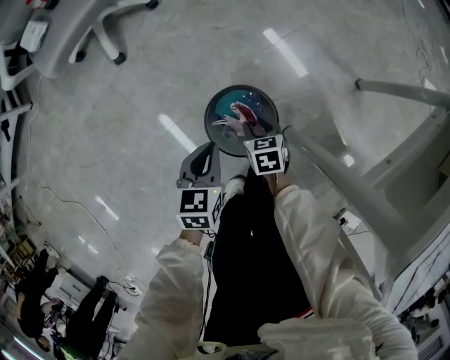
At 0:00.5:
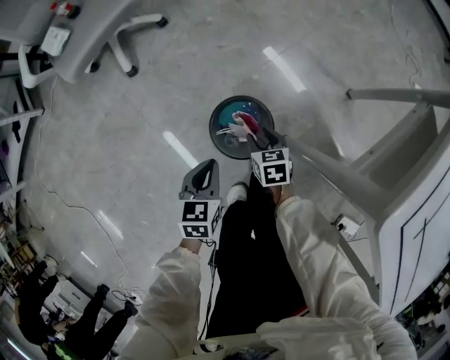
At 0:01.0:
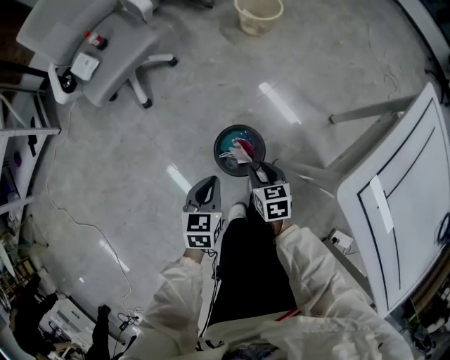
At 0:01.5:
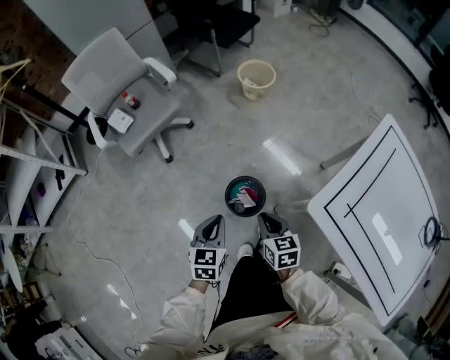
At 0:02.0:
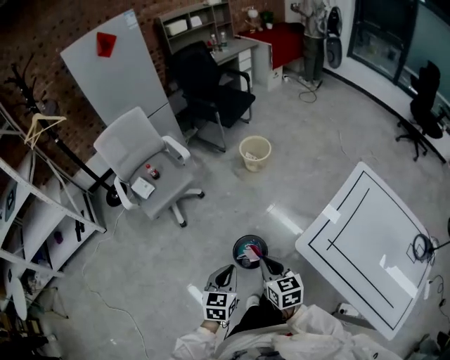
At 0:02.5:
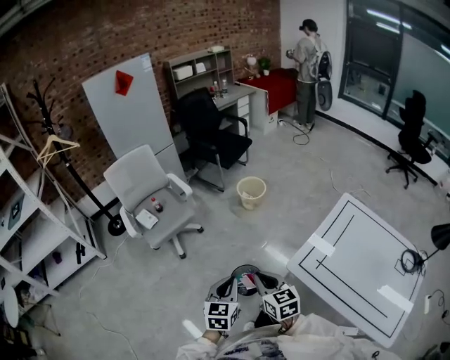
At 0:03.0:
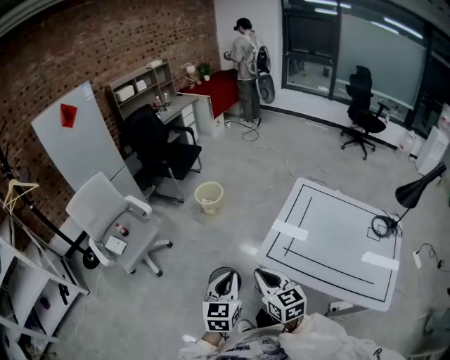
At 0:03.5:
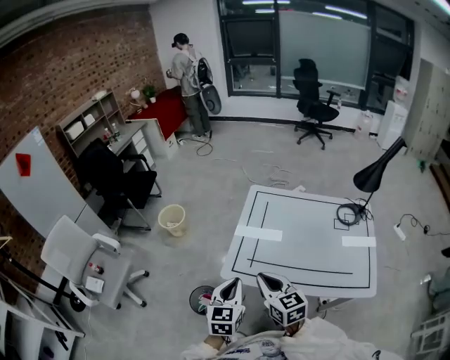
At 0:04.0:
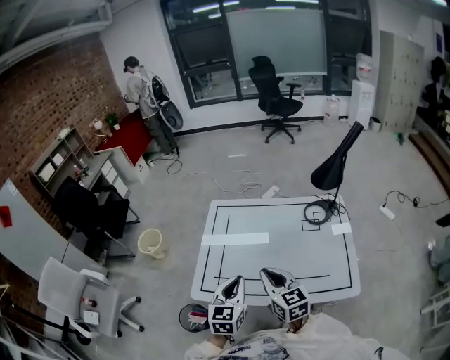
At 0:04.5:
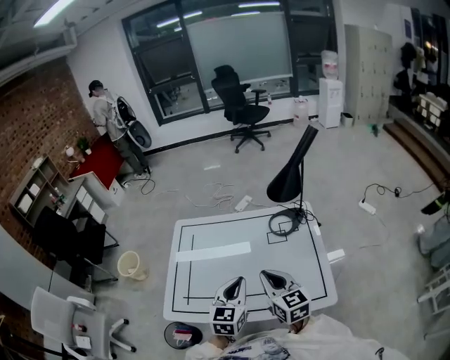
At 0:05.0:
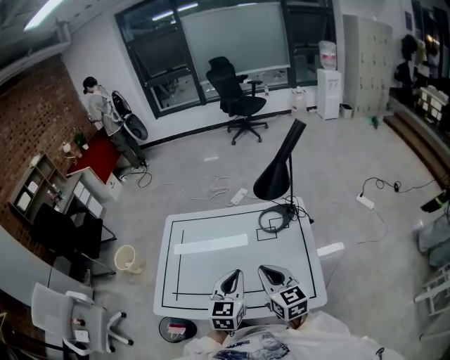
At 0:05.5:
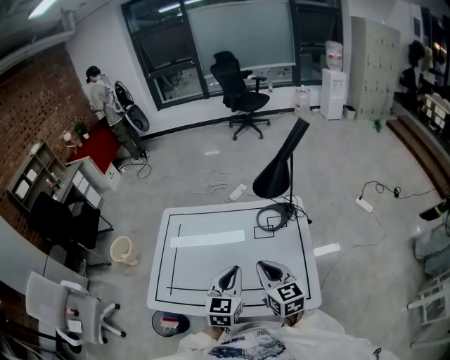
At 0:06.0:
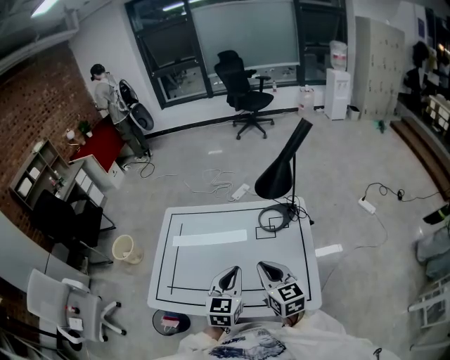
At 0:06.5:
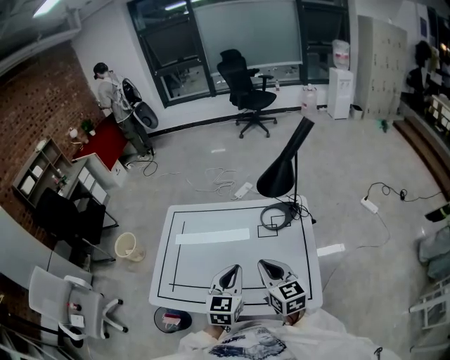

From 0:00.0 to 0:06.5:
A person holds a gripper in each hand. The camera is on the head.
From 0:00.0 to 0:02.0: The two grippers go about 50 cm upward. The right gripper tips its fingers upward by about 30 degrees, and closes its fingers.
From 0:02.0 to 0:04.5: Both grippers are carried roughly 60 cm. The left gripper rotates approximately 50 degrees, while the right gripper swivels about 50 degrees.
From 0:04.5 to 0:06.5: The two grippers go some 5 cm to the right.

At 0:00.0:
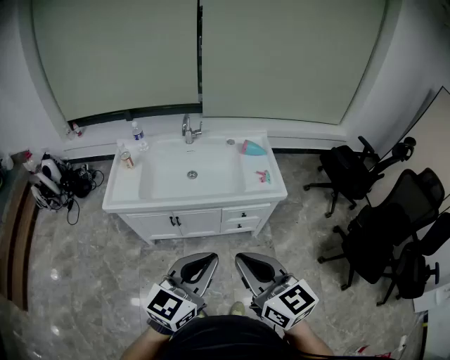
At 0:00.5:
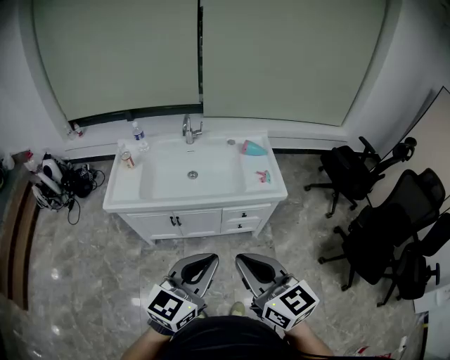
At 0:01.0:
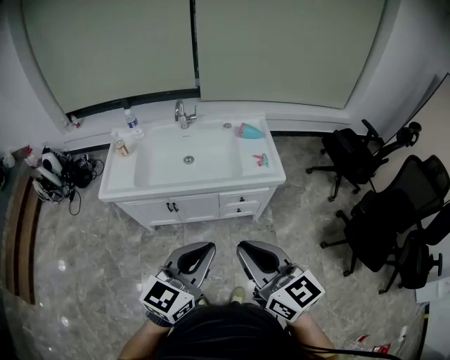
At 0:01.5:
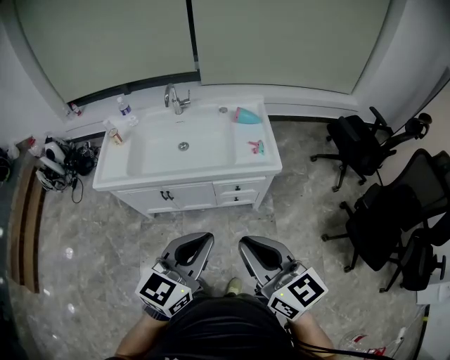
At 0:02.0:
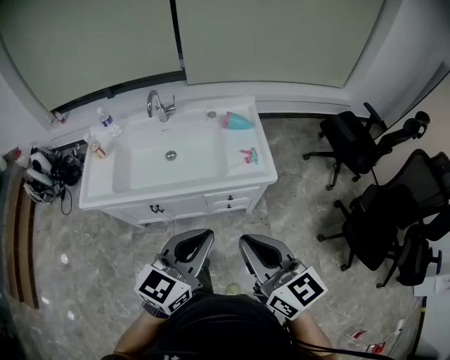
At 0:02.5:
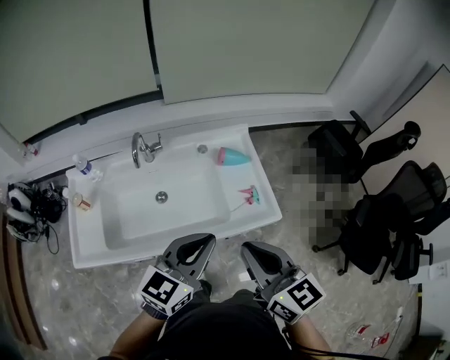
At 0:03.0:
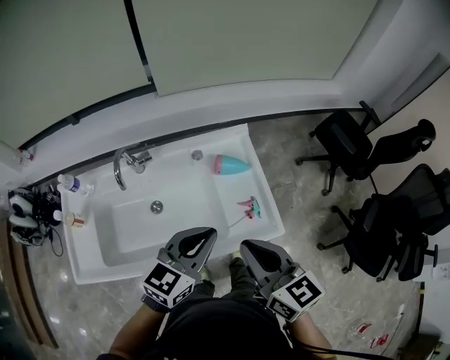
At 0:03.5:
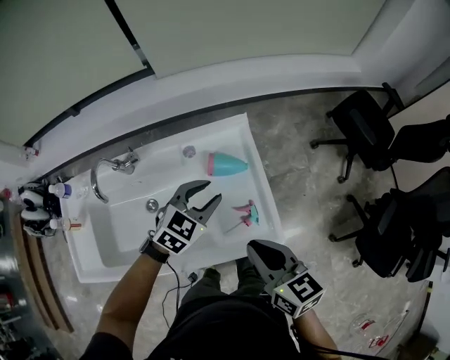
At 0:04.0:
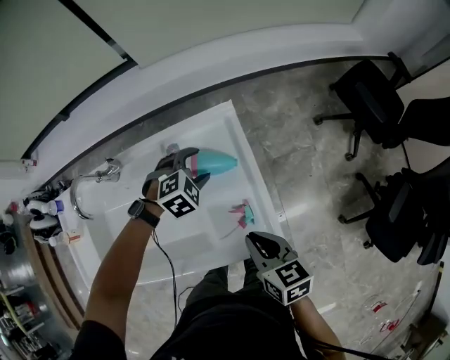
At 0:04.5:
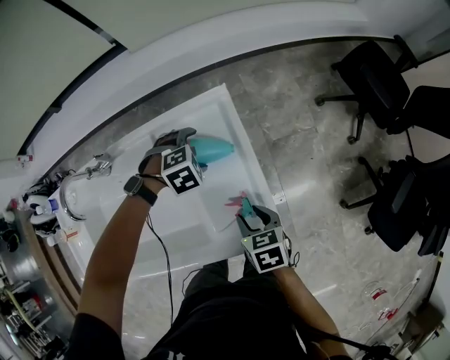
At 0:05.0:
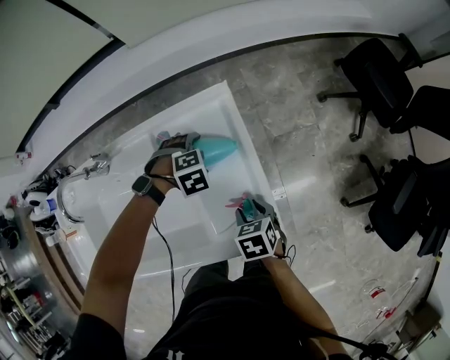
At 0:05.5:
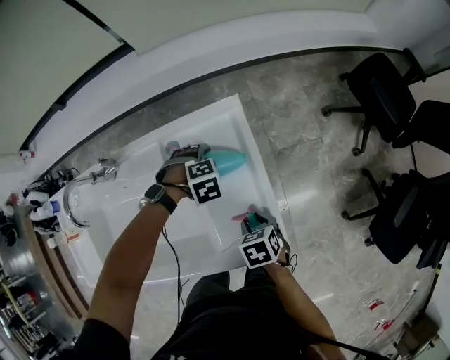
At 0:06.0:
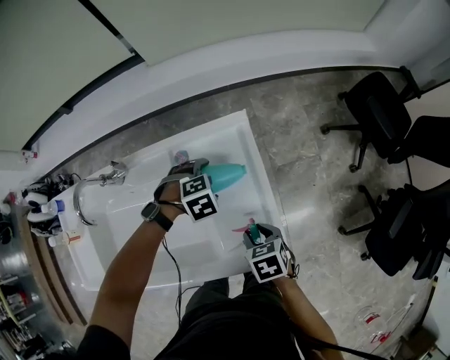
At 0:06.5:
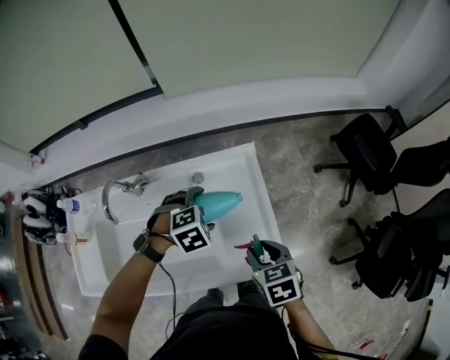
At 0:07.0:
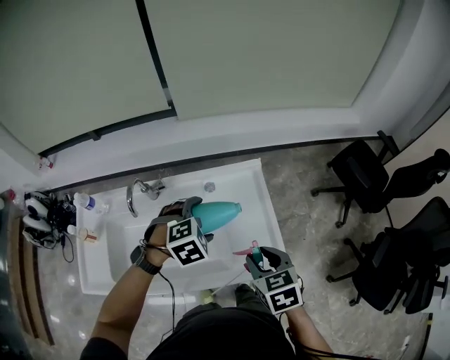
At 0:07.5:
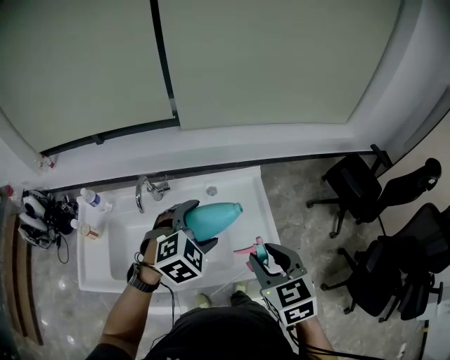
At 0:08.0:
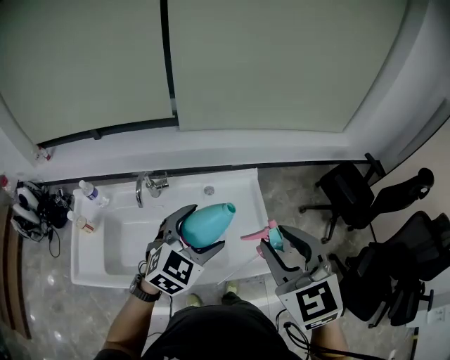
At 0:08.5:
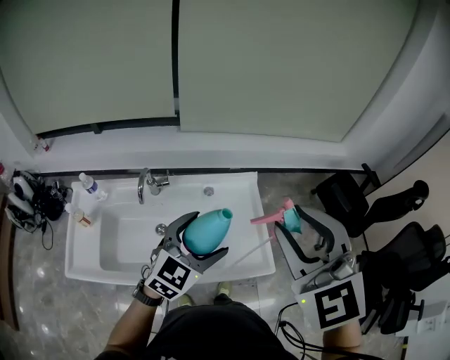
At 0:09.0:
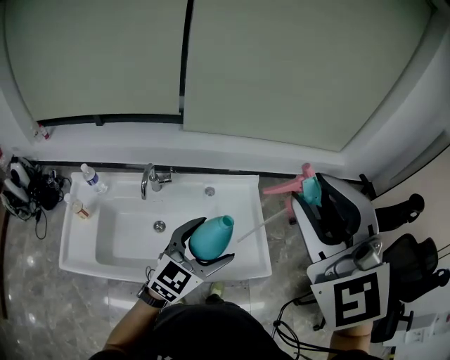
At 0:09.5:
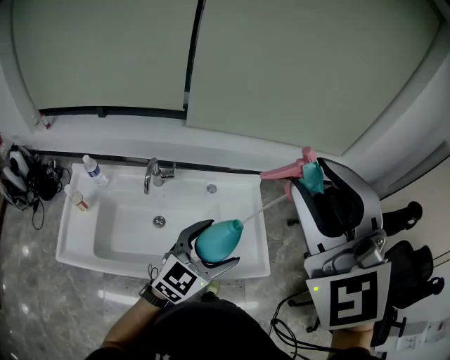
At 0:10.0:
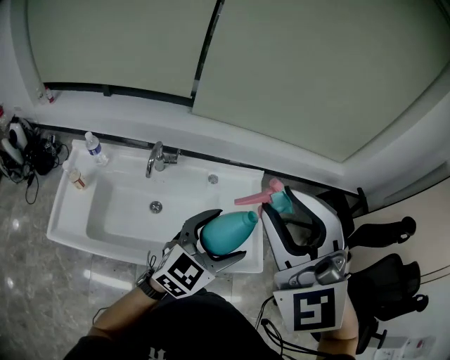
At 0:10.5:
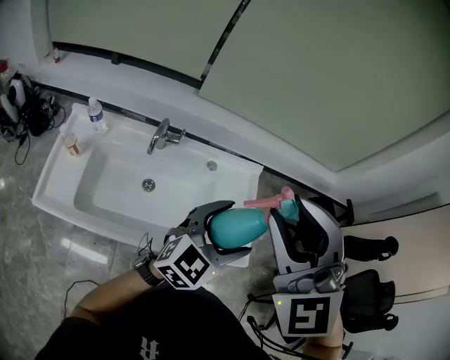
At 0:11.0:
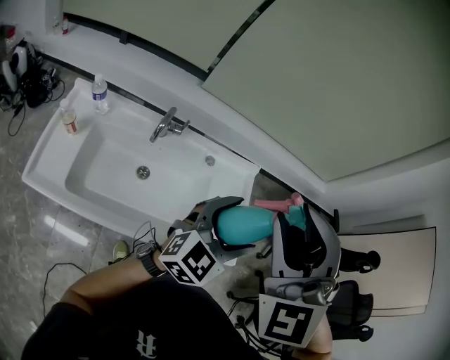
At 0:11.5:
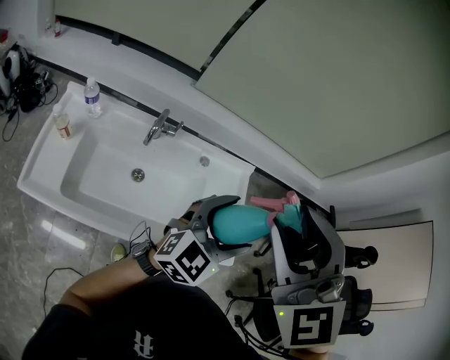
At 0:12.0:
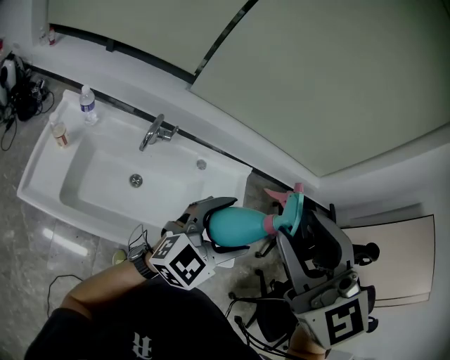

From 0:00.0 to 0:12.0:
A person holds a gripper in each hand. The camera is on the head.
From 0:00.0 to 0:02.0: Both grippers move forward and to the right, about 20 cm.
From 0:02.0 to 0:04.0: The pair of grippers is taken forward, approximately 50 cm. The two grippers go about 30 cm downward. The left gripper angles its fingers downward, by some 50 degrees, and opens; the right gripper rotates about 30 degrees.
From 0:04.0 to 0:06.0: The right gripper travels downward by approximately 10 cm, turns by roughly 30 degrees, and opens. Meanwhile the left gripper shifts roughly 5 cm downward, and opens up.
From 0:06.0 to 0:08.0: Both grippers travel together upward, some 40 cm. The right gripper tips its fingers upward by approximately 40 degrees, while the left gripper points its fingers some 50 degrees further upward.
From 0:08.0 to 0:10.0: The left gripper rotates some 20 degrees, while the right gripper shifts about 15 cm to the left and upward, and rotates roughly 30 degrees.
From 0:10.0 to 0:12.0: The grippers move only a little.

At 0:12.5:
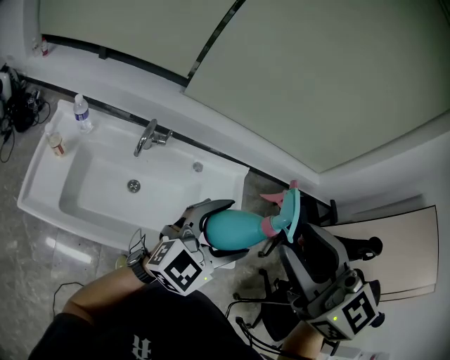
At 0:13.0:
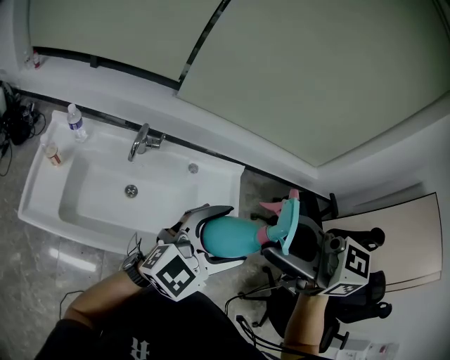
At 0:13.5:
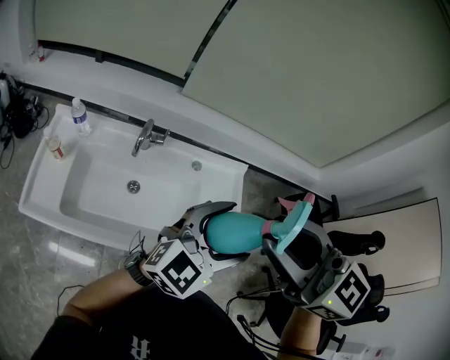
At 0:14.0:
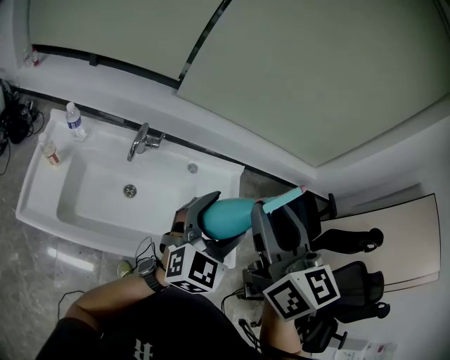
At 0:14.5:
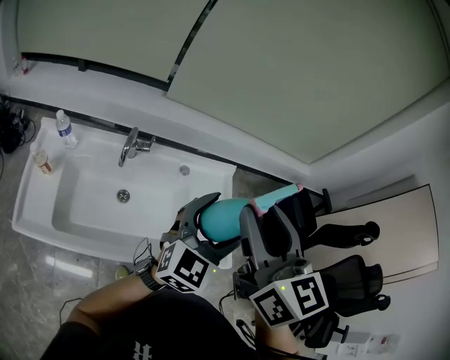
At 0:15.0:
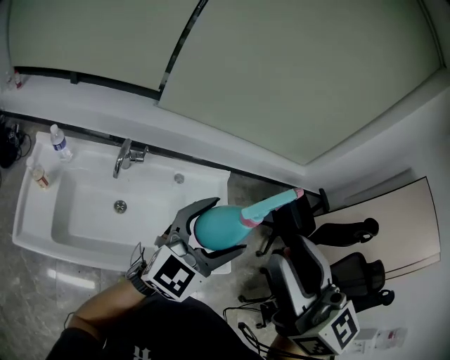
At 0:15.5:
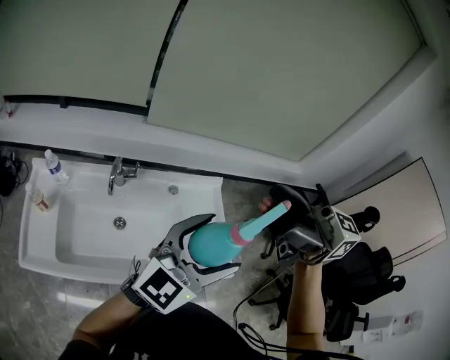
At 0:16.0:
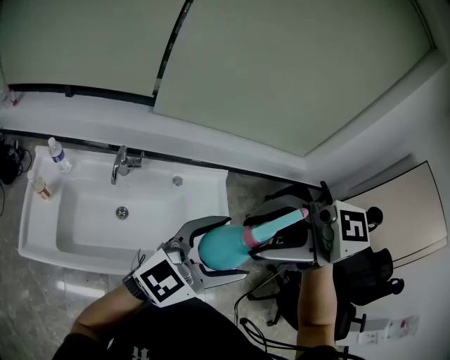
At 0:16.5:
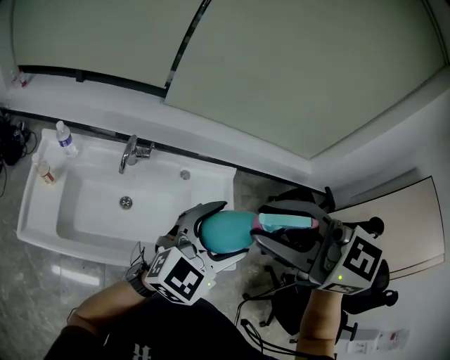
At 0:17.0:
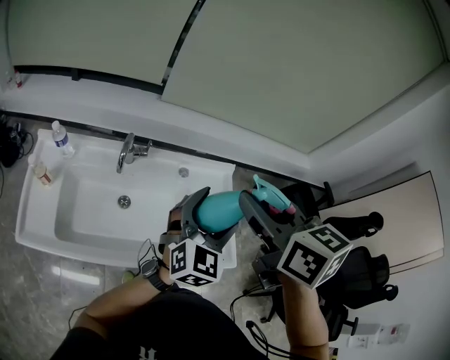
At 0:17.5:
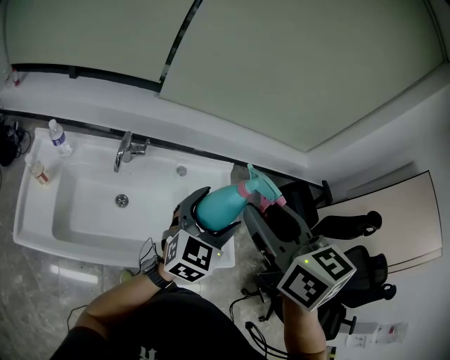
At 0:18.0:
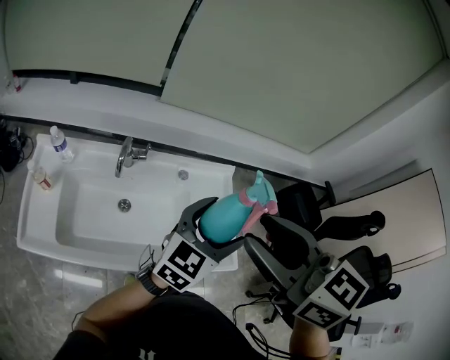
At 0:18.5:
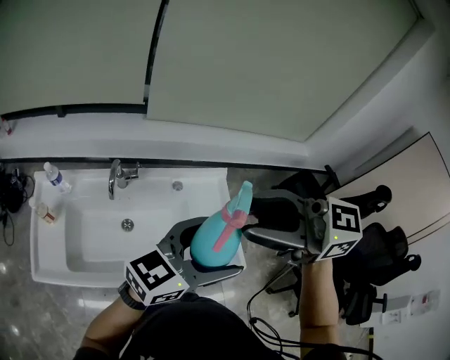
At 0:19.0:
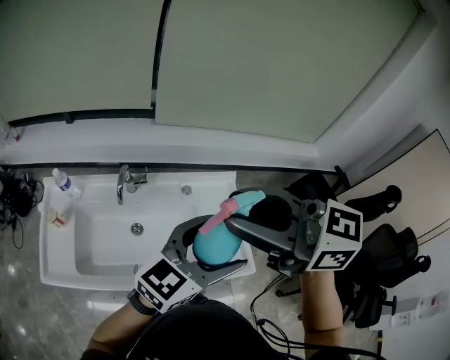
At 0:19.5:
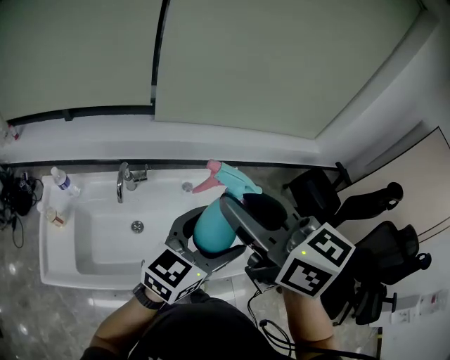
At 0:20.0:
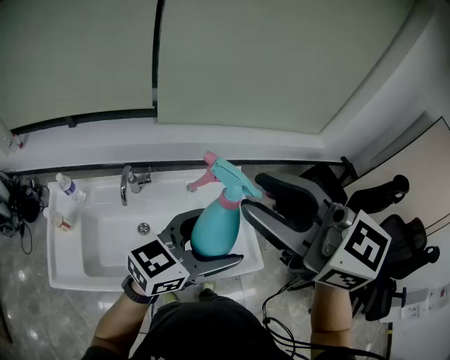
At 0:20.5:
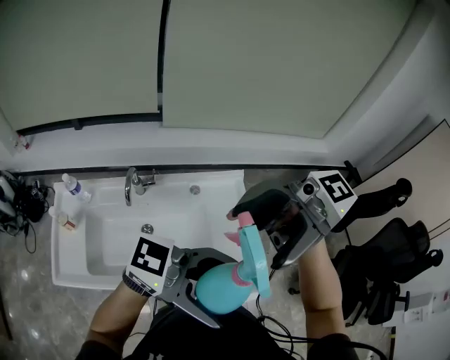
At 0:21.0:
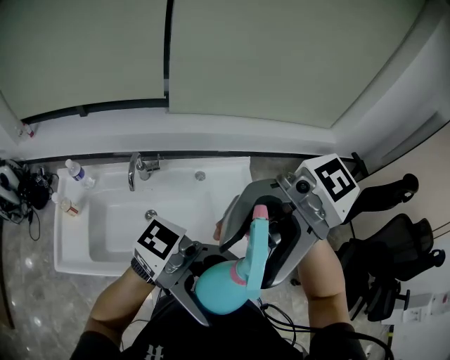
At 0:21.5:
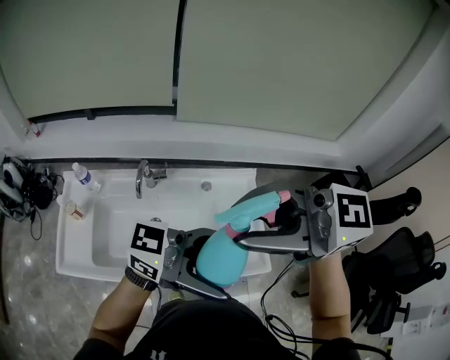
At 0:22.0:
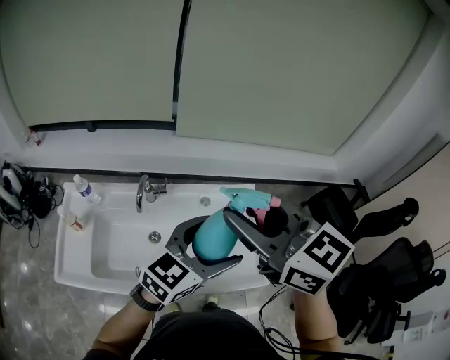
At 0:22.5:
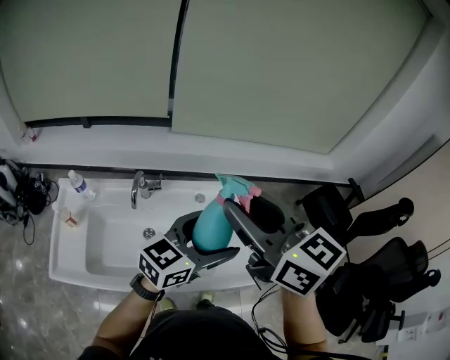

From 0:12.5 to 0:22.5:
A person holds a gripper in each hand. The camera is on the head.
From 0:12.5 to 0:14.5: The right gripper changes place by approximately 5 cm, and changes its angle by roughly 30 degrees.
From 0:14.5 to 0:16.5: The right gripper rotates approximately 50 degrees, and opens and closes again.
From 0:16.5 to 0:18.5: The left gripper travels downward and back again, about 5 cm each way, and changes its angle by some 30 degrees. The right gripper turns by about 20 degrees.
From 0:18.5 to 0:20.5: The left gripper shifts by about 10 cm, and swivels approximately 50 degrees. Meanwhile the right gripper is displaced upward by about 5 cm, swivels about 40 degrees, and opens.
From 0:20.5 to 0:22.5: The right gripper changes place by approximately 10 cm, rotates roughly 70 degrees, and closes; the left gripper shifts by roughly 20 cm, and turns by approximately 60 degrees.
